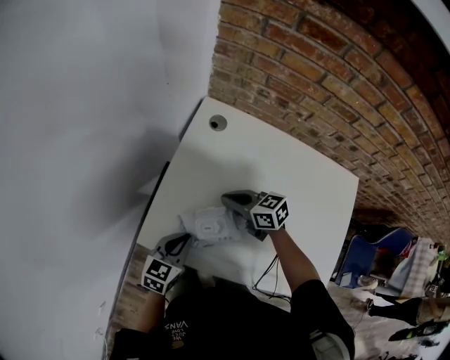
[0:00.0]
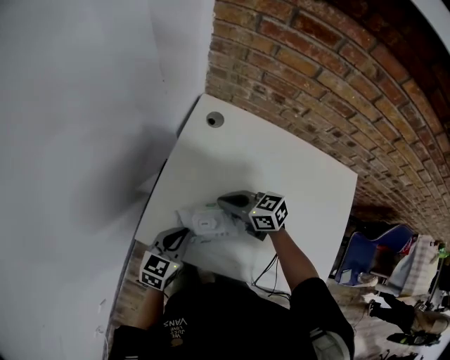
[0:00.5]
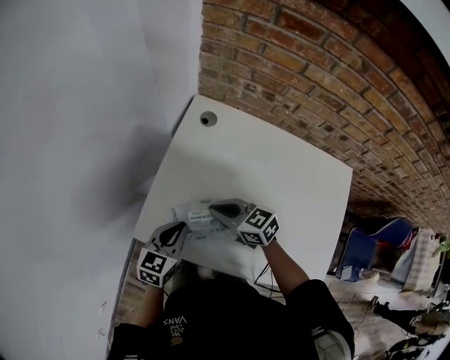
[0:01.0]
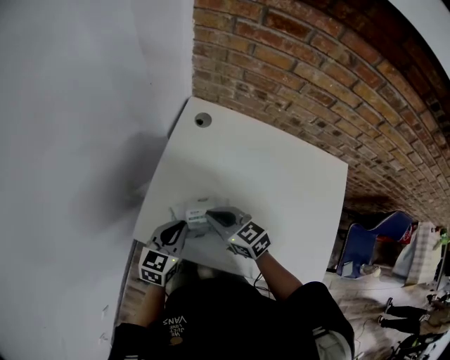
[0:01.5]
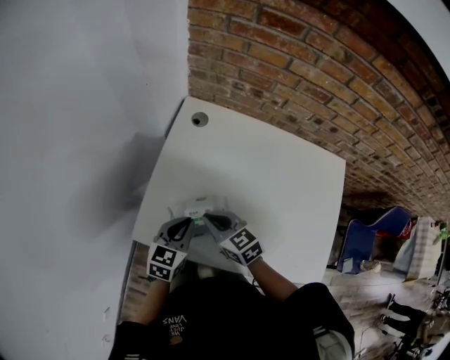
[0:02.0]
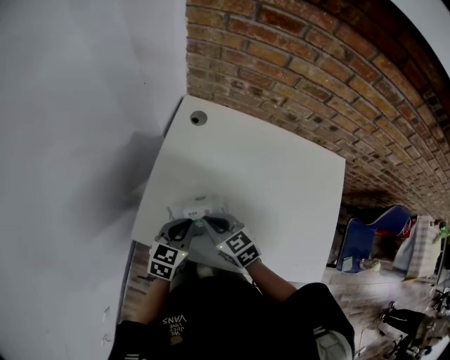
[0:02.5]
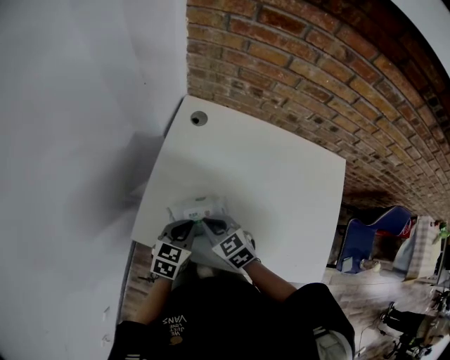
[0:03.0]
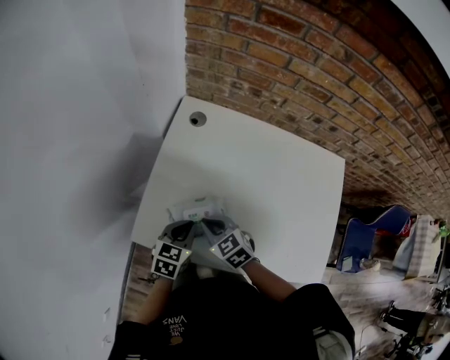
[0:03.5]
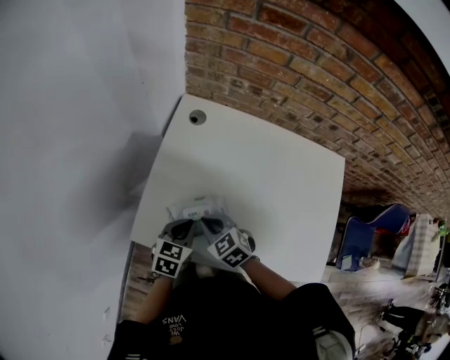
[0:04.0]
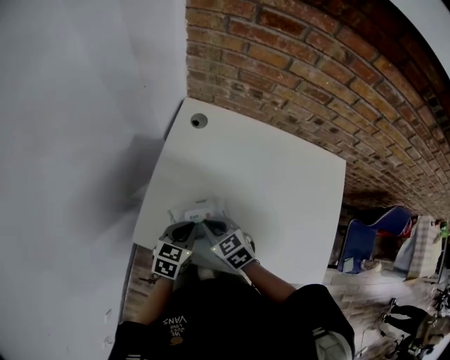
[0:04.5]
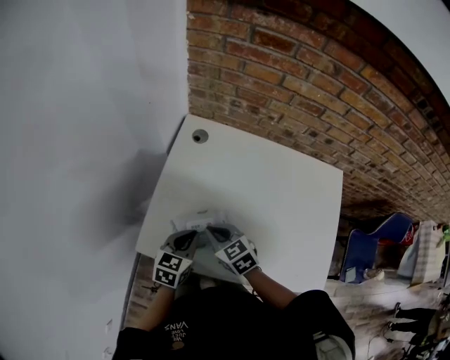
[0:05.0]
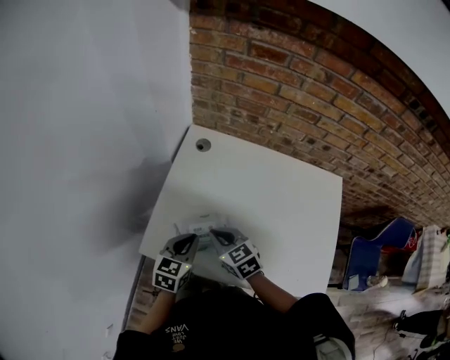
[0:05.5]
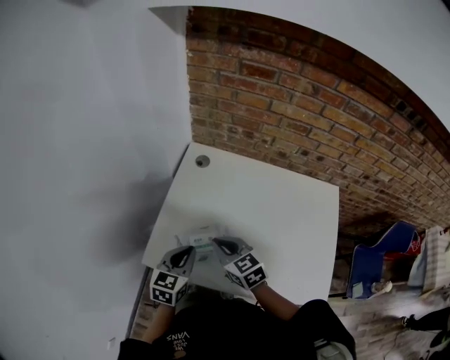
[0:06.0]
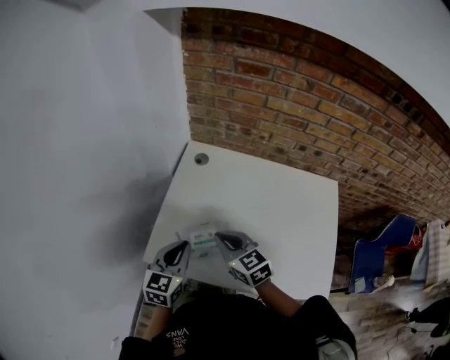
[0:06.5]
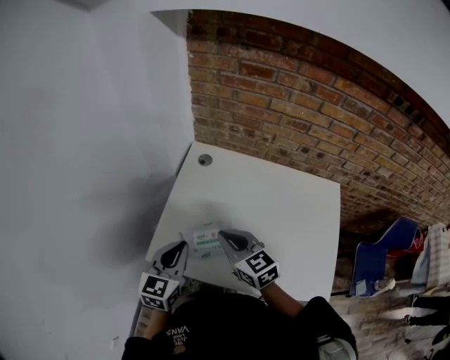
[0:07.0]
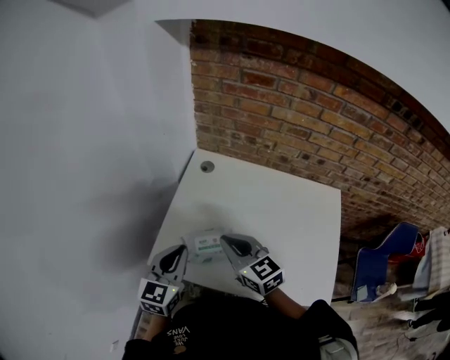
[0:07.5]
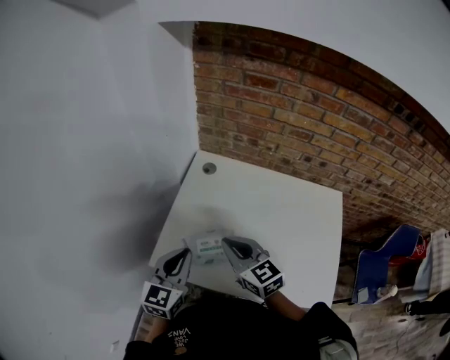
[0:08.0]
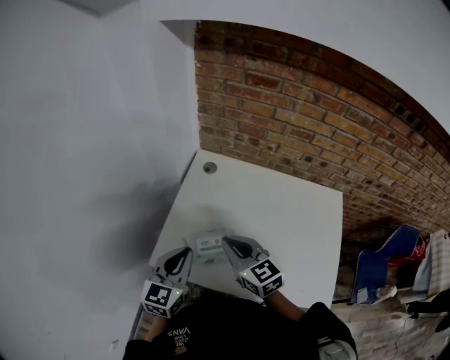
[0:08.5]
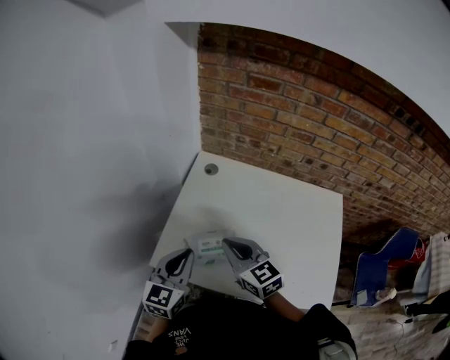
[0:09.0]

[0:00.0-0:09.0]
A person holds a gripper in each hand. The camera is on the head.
0:00.0 to 0:02.0: The left gripper changes place by about 5 cm, while the right gripper heads backward, covering approximately 10 cm, and rotates approximately 20 degrees.
0:04.5 to 0:07.0: Both grippers travel together upward, about 15 cm. The left gripper changes its angle by approximately 30 degrees, while the right gripper swivels approximately 20 degrees.
0:07.0 to 0:09.0: The grippers make only small movements.

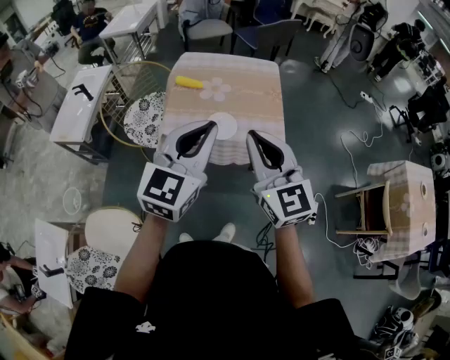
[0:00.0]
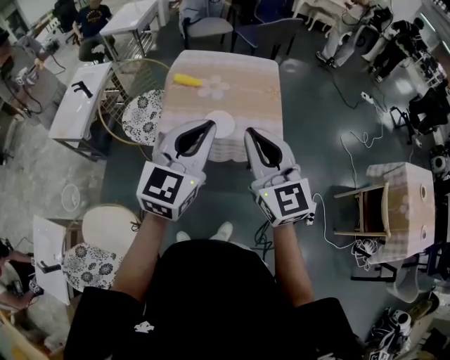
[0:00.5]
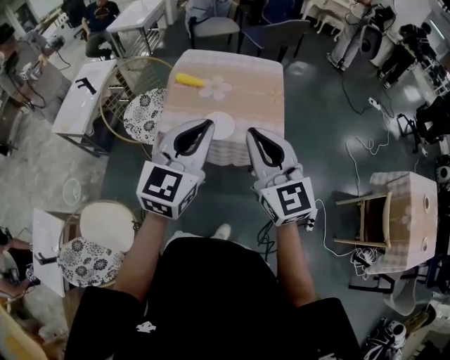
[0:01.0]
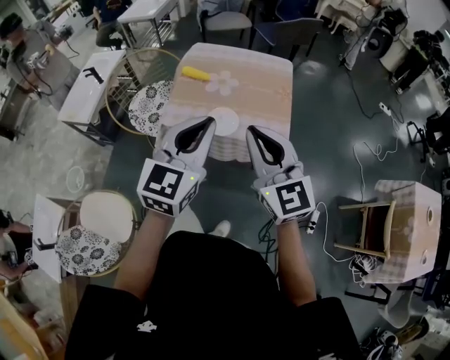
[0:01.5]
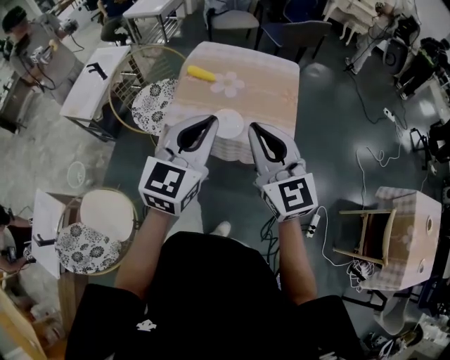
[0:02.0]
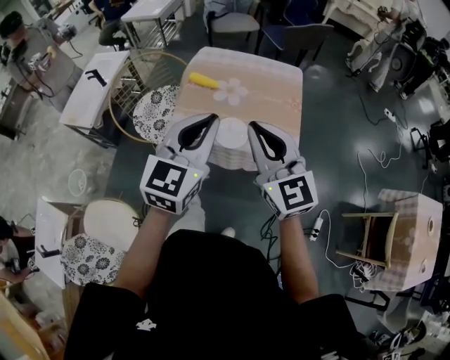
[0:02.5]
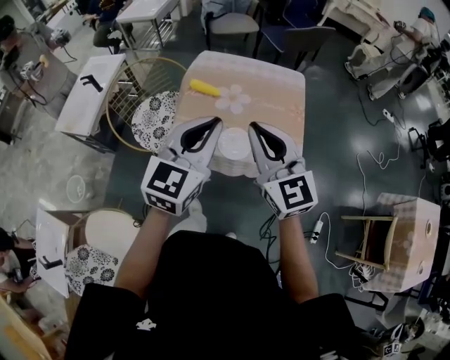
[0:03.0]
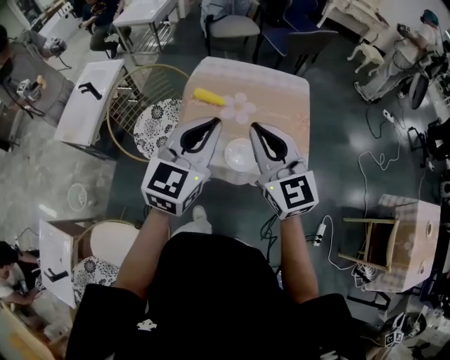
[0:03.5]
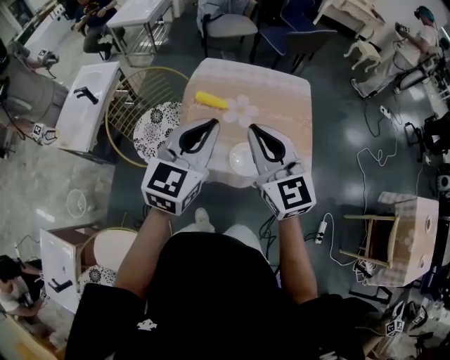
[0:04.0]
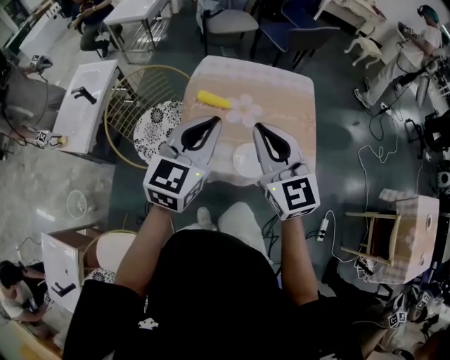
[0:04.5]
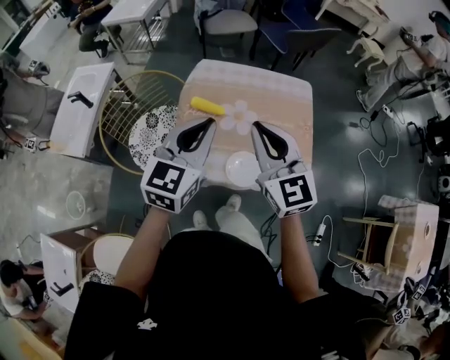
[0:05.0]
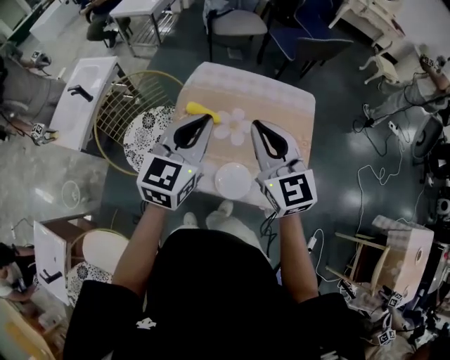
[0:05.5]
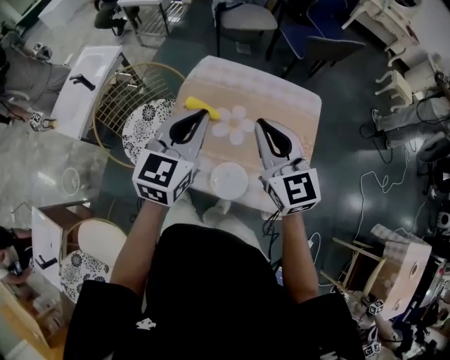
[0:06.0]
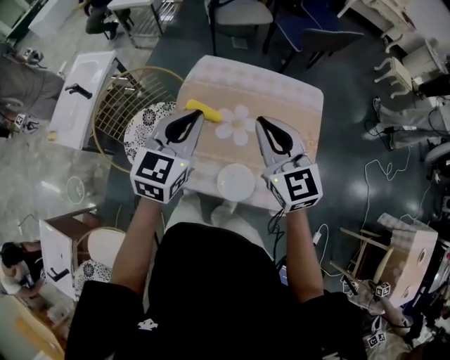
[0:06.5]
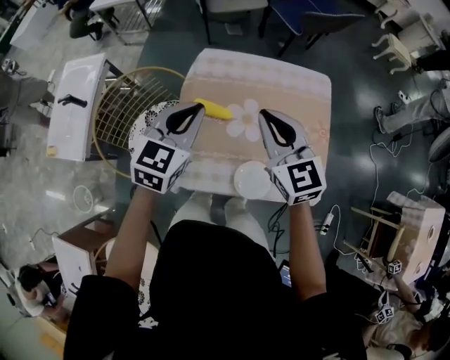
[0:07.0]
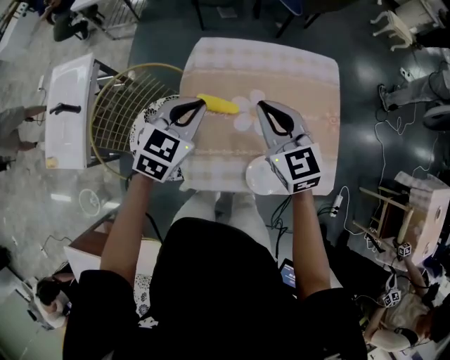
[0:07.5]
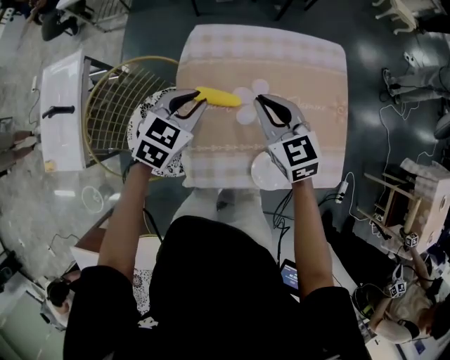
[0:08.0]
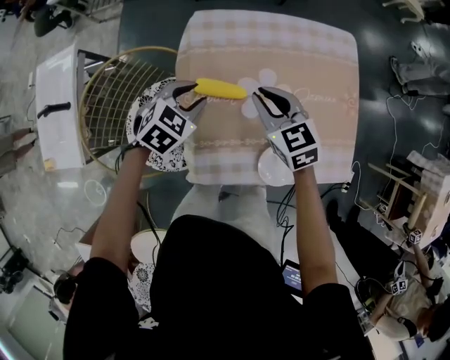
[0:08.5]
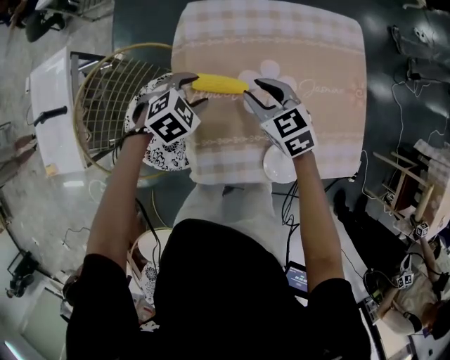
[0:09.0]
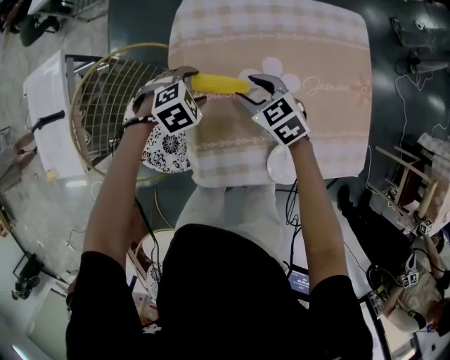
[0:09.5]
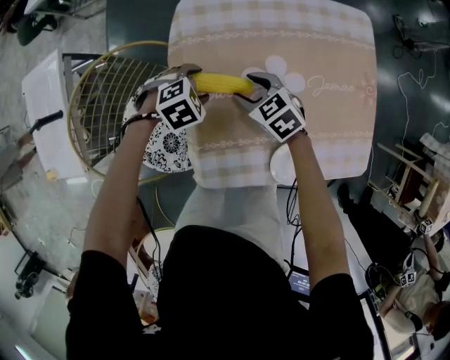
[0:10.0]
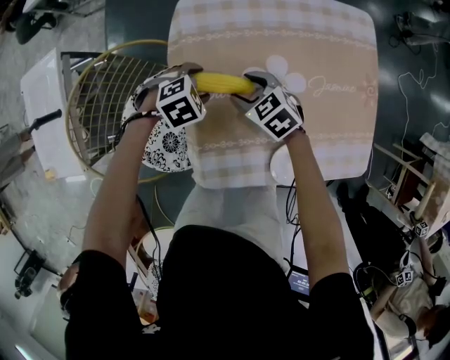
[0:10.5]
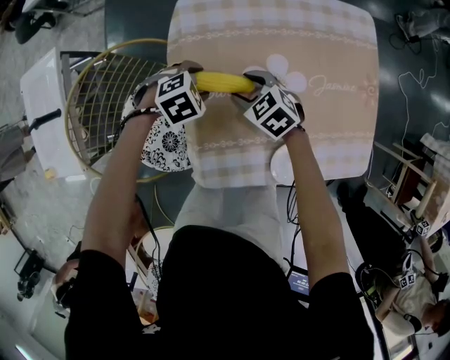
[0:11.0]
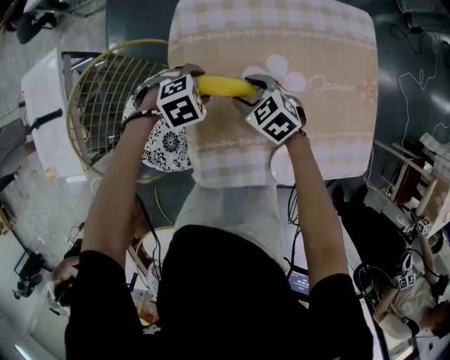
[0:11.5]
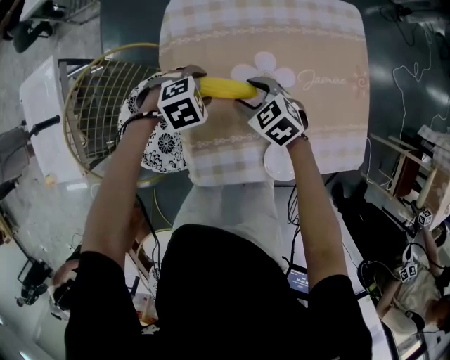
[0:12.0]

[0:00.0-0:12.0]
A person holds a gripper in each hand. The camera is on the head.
0:00.0 to 0:02.0: The right gripper travels forward by approximately 5 cm, while the left gripper ends up approximately 5 cm from where it was.
0:02.0 to 0:04.0: The grippers both shift forward and to the left by some 20 cm.
0:04.0 to 0:06.0: The left gripper shifts roughly 15 cm forward; the right gripper shifts some 20 cm forward and to the right.
0:06.0 to 0:08.0: Both grippers travel together downward, forward and to the left, approximately 25 cm. The right gripper rotates some 20 degrees; the left gripper rotates some 40 degrees.
0:08.0 to 0:10.0: The two grippers go approximately 20 cm downward. The right gripper turns by about 30 degrees, and opens up, while the left gripper swivels approximately 40 degrees, and opens.
0:10.0 to 0:12.0: There are only small adjustments of the grippers.

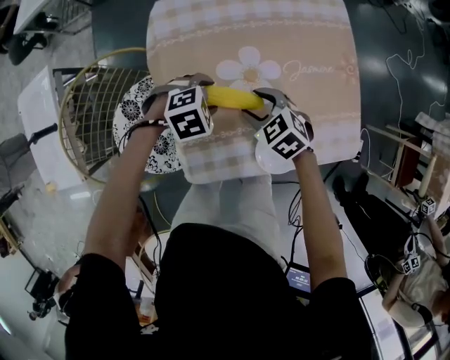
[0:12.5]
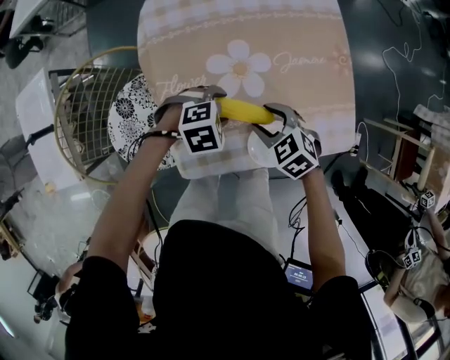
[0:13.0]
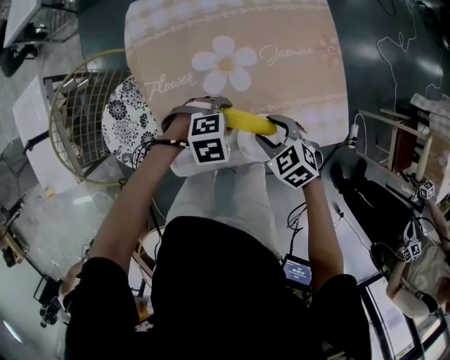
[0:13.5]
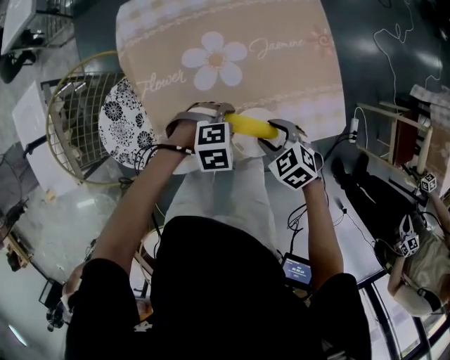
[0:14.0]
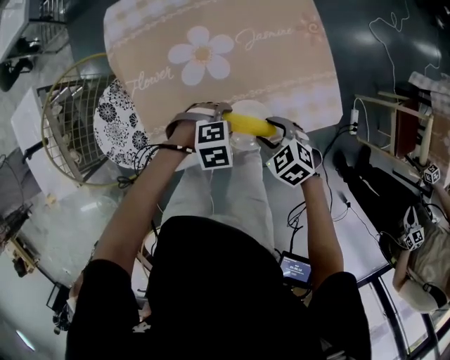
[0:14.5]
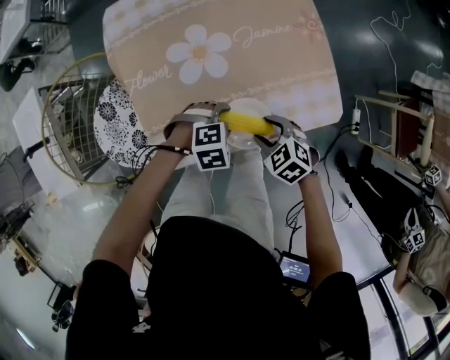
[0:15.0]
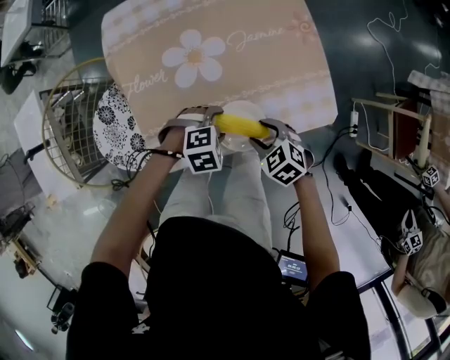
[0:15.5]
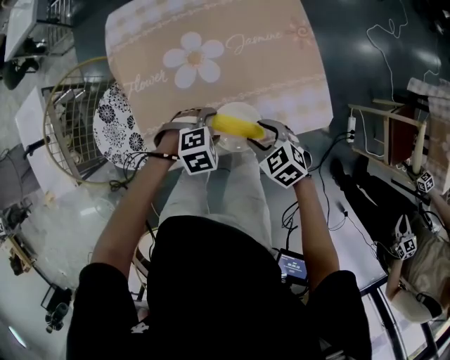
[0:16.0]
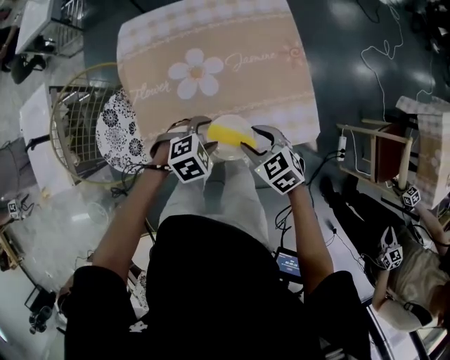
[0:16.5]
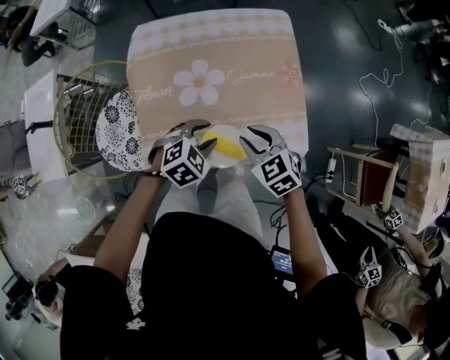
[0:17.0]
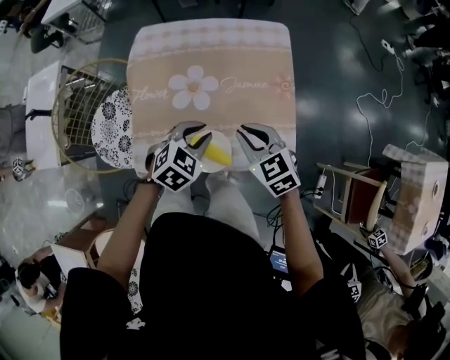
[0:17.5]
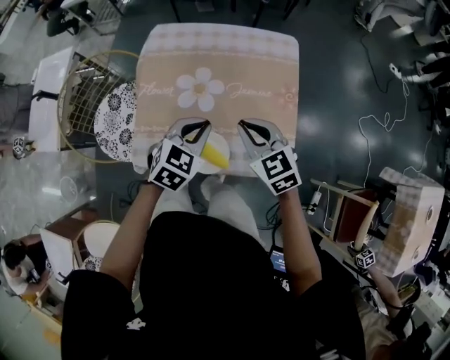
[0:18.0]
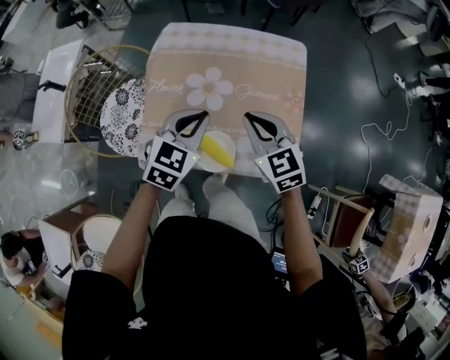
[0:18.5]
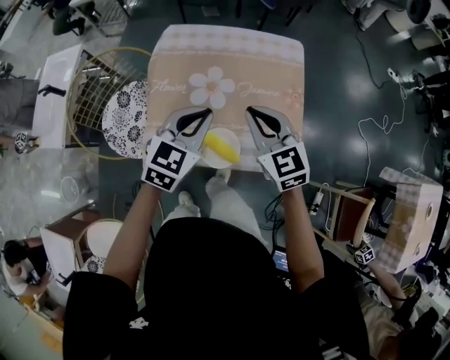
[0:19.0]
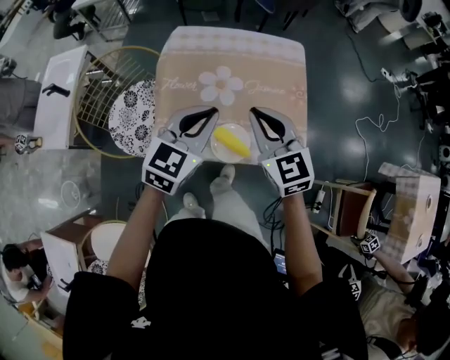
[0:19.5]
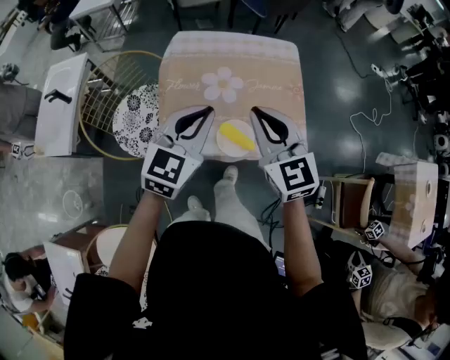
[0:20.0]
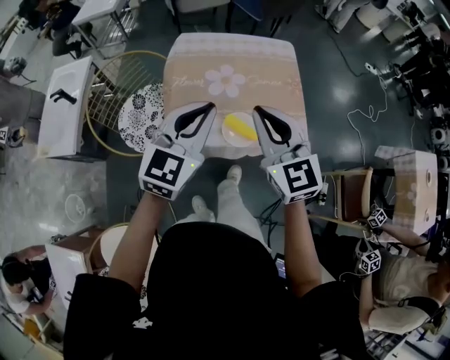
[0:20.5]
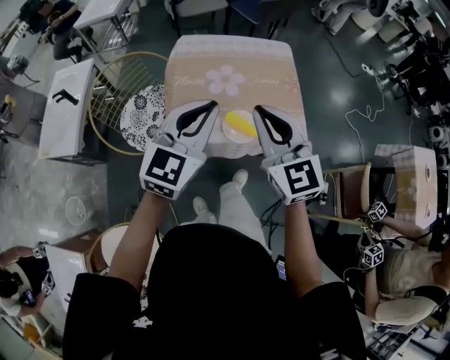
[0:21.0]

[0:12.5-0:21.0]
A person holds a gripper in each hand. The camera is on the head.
0:12.5 to 0:14.5: The right gripper shifts by approximately 20 cm. The left gripper changes place by about 20 cm.
0:14.5 to 0:16.5: The two grippers go some 5 cm upward.
0:16.5 to 0:19.0: Both grippers travel together upward, approximately 20 cm. The right gripper changes its angle by about 30 degrees, and closes up. Meanwhile the left gripper angles its fingers upward, by roughly 40 degrees, and closes its fingers.
0:19.0 to 0:21.0: The two grippers go some 25 cm backward, upward and to the left. The left gripper rotates roughly 20 degrees.
